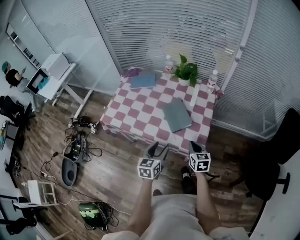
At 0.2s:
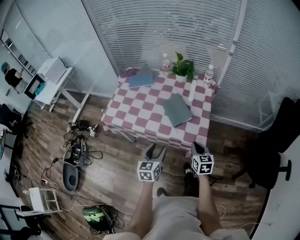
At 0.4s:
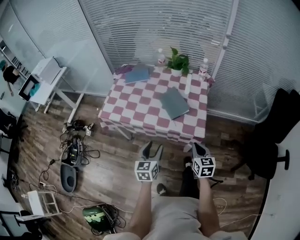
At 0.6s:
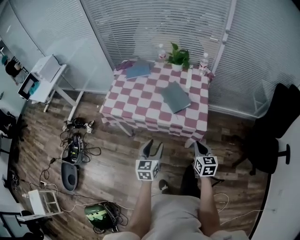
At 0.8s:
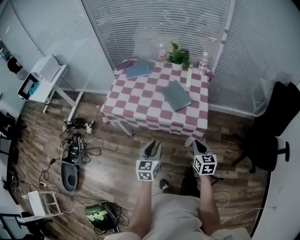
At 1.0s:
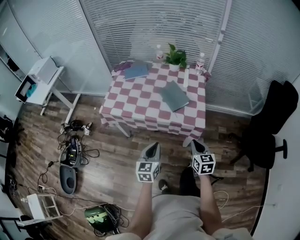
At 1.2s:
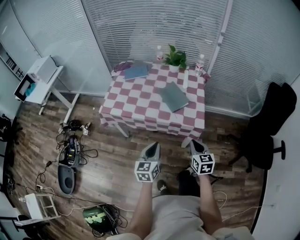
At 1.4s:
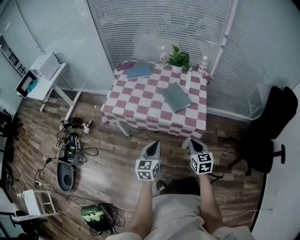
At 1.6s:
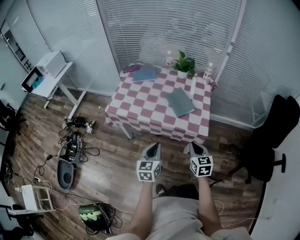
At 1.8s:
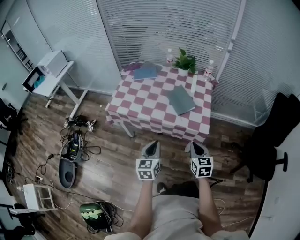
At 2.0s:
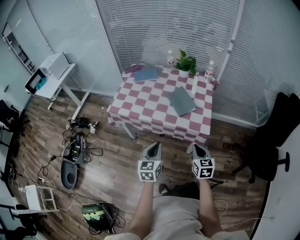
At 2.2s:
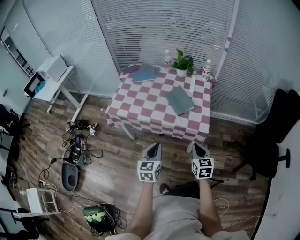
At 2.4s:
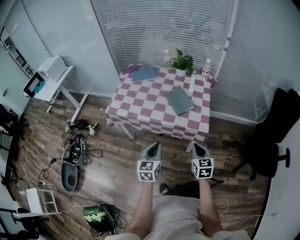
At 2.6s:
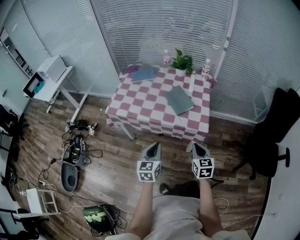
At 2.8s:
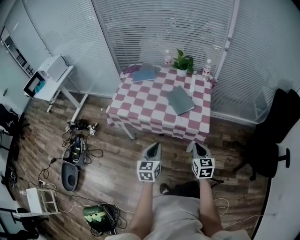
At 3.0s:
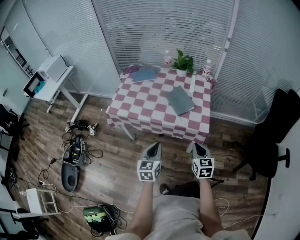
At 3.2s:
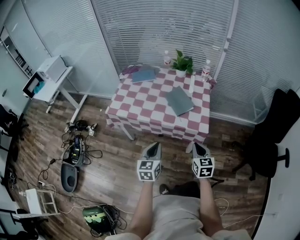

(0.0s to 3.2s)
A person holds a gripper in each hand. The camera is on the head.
0.0s - 1.6s: The left gripper shifts roughly 15 cm backward and to the left, and closes its fingers. The right gripper goes approximately 15 cm backward.
1.6s - 3.2s: The grippers stay close to where they were, moving slightly.

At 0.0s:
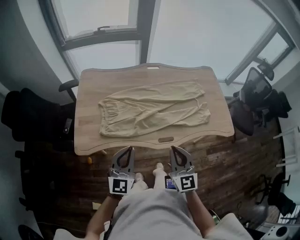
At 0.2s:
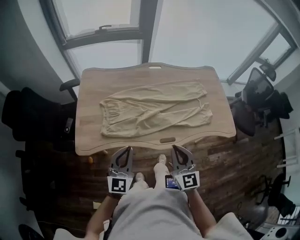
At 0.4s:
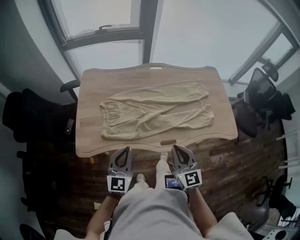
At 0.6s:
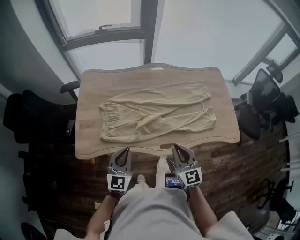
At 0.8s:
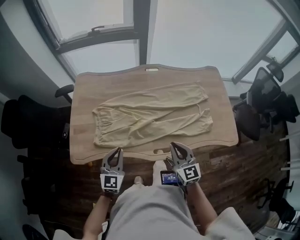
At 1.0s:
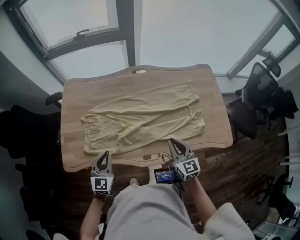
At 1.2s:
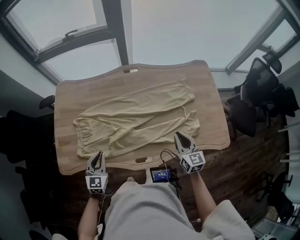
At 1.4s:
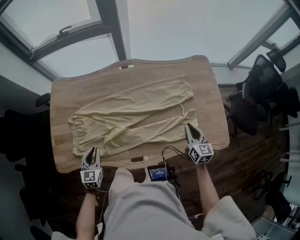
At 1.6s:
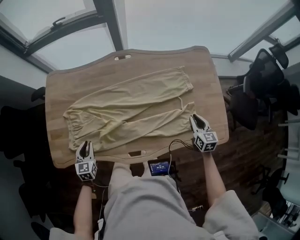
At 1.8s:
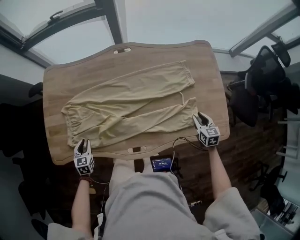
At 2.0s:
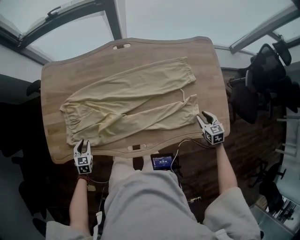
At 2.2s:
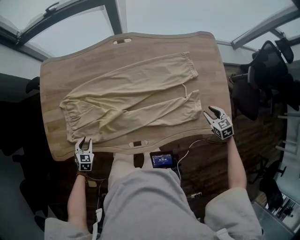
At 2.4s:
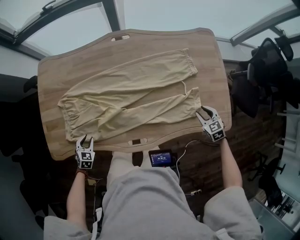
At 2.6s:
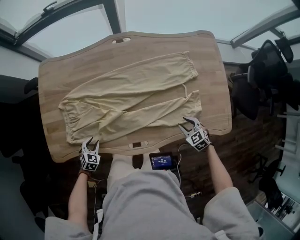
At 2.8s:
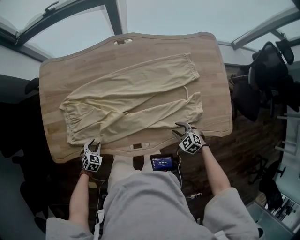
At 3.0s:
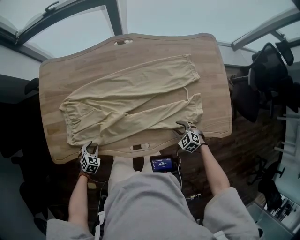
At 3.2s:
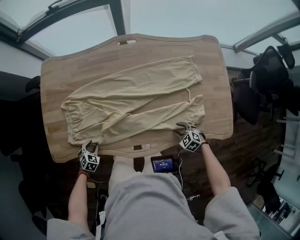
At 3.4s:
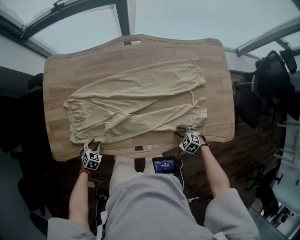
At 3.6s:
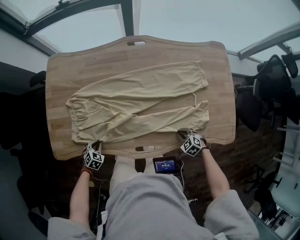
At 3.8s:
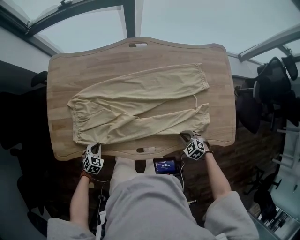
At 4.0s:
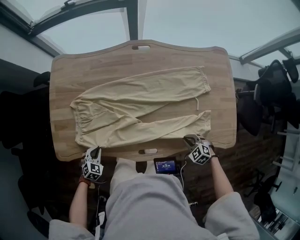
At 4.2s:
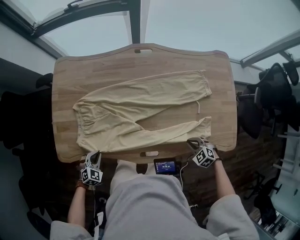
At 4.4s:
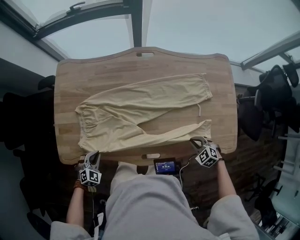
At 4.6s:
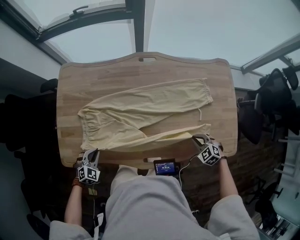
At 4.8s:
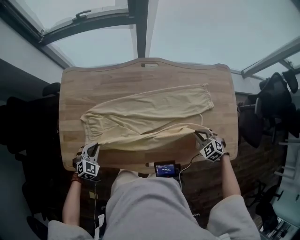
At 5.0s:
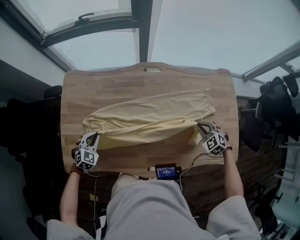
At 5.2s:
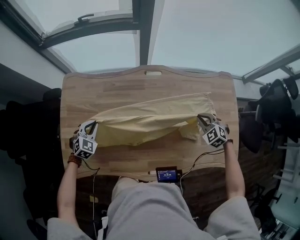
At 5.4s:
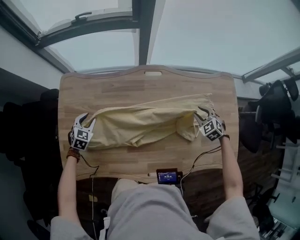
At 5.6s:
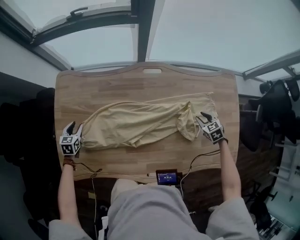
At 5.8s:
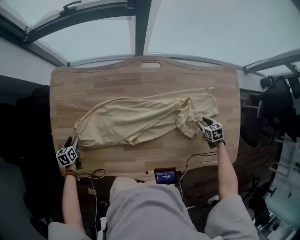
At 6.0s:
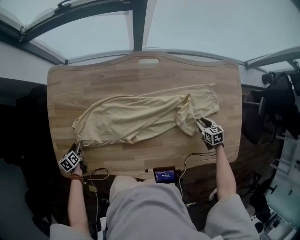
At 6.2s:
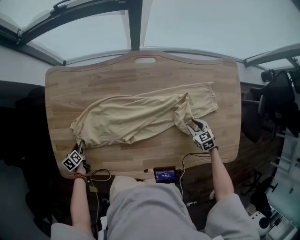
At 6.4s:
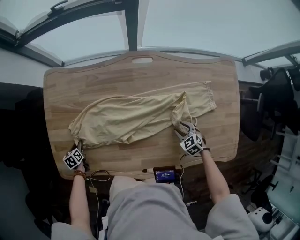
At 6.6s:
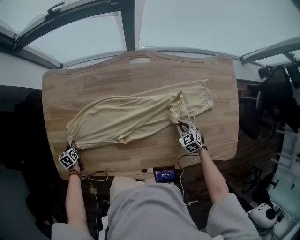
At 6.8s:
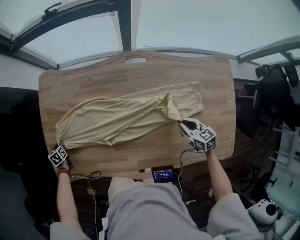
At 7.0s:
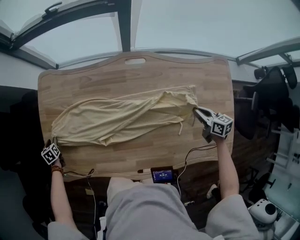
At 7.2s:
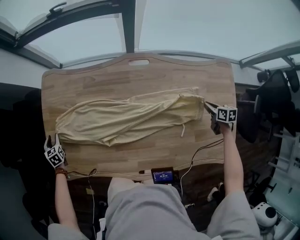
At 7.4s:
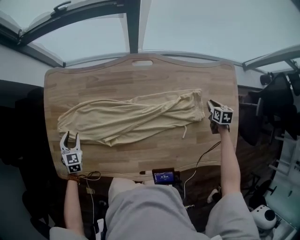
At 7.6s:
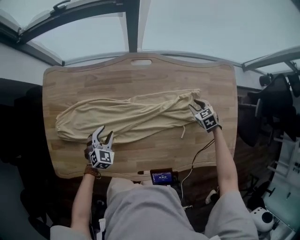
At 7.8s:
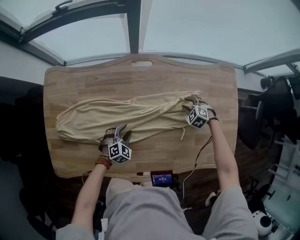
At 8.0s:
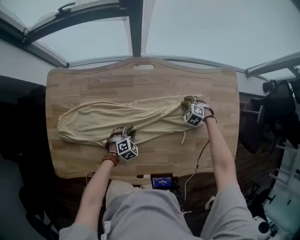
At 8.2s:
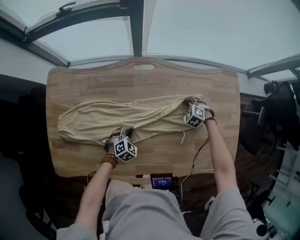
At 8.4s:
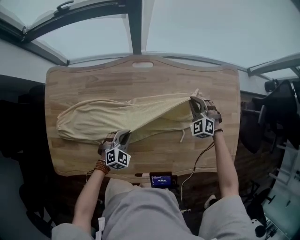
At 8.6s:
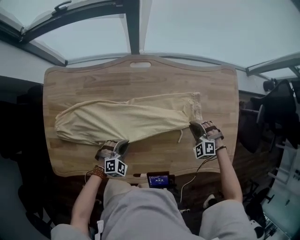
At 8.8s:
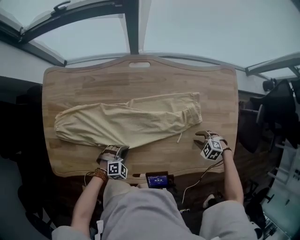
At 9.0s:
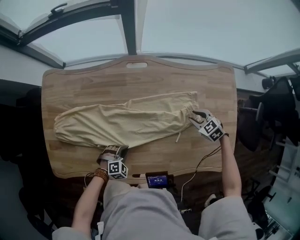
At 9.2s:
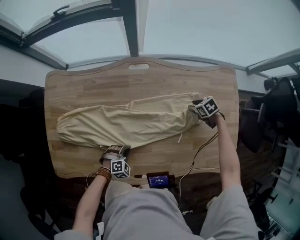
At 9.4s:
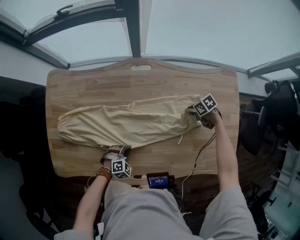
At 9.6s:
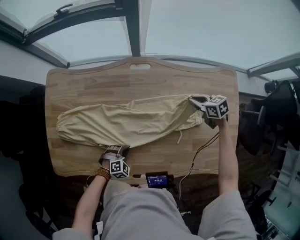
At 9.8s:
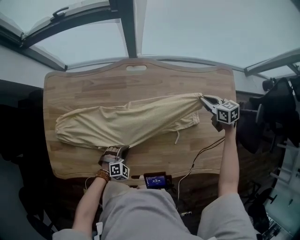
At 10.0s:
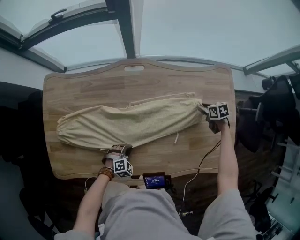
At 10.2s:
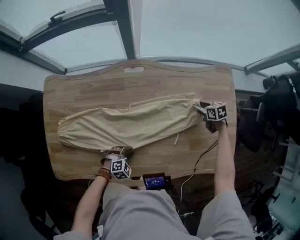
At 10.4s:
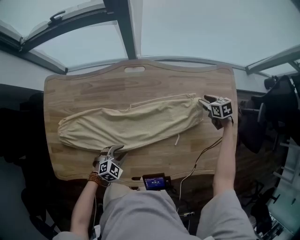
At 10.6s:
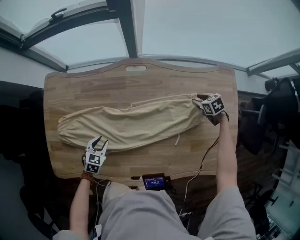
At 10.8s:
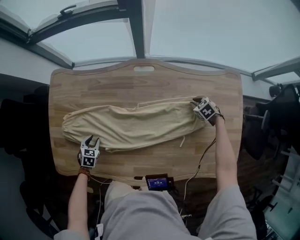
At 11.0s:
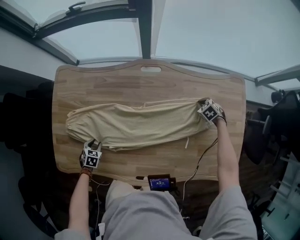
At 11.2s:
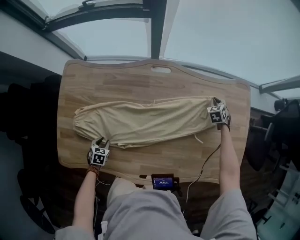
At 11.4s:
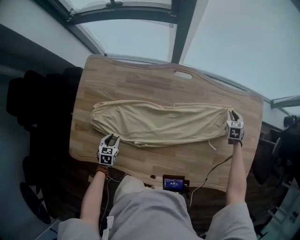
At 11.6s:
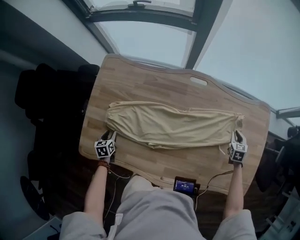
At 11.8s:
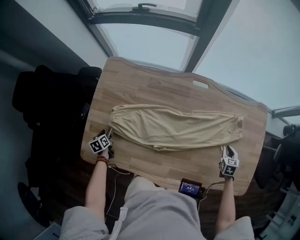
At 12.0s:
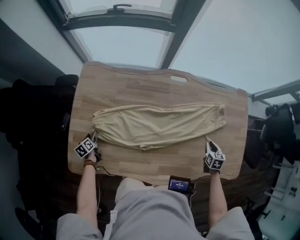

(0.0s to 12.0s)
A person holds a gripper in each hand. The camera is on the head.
0.0s - 1.6s: The left gripper travels downward and forward by approximately 30 cm, and points its fingers roughly 40 degrees further downward; the right gripper is displaced to the right, forward and downward by some 50 cm, and changes its angle by roughly 30 degrees.
1.6s - 3.0s: The right gripper goes approximately 20 cm downward, to the left and backward, tilts its fingers approximately 30 degrees downward, and opens up. The left gripper goes about 15 cm downward and backward, and turns by some 40 degrees.
3.0s - 4.4s: The grippers both shift upward by roughly 10 cm. The left gripper closes; the right gripper closes up.
4.4s - 6.0s: The right gripper heads forward and to the right, covering roughly 20 cm, rolls clockwise, seen from behind, by approximately 50 degrees, and opens its fingers, while the left gripper travels forward, to the left and downward by about 25 cm, rotates around the line of its fingers by some 80 degrees, counterclockwise from behind, and opens its fingers.
6.0s - 7.6s: The left gripper changes place by roughly 30 cm, rotates around the line of its fingers by approximately 70 degrees, clockwise from behind, and closes and opens again. The right gripper travels upward and back again, about 10 cm each way, changes its angle by roughly 20 degrees, and closes, then reopens.
7.6s - 9.0s: The right gripper goes up and down, approximately 10 cm each way, reversing 2 times, and closes and opens again. The left gripper moves up and down over approximately 10 cm, changing direction 2 times, changes its angle by some 30 degrees, and closes its fingers.
9.0s - 10.4s: The right gripper moves up and down over approximately 15 cm, changing direction 3 times, changes its angle by roughly 30 degrees, and closes, then reopens; the left gripper ends up some 5 cm from where it was, and opens its fingers.
10.4s - 12.0s: The left gripper swings up and down, some 10 cm each way, with 2 reversals, rotates around the line of its fingers by approximately 90 degrees, counterclockwise from behind, and opens its fingers, while the right gripper reaches roughly 5 cm downward, then returns, rotates approximately 30 degrees, and closes.

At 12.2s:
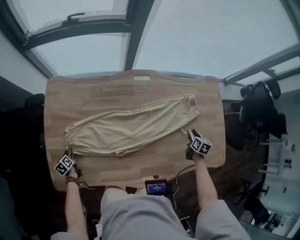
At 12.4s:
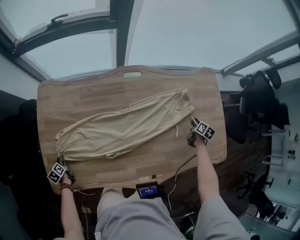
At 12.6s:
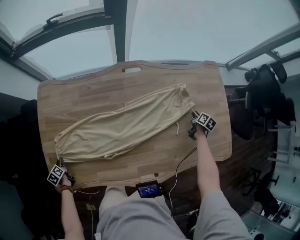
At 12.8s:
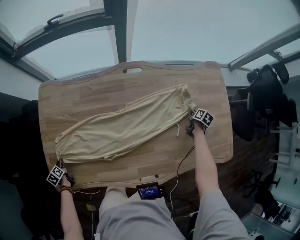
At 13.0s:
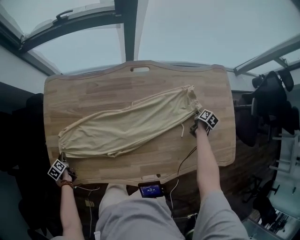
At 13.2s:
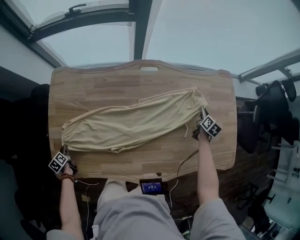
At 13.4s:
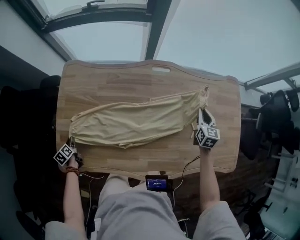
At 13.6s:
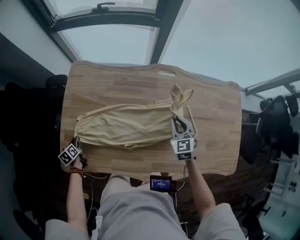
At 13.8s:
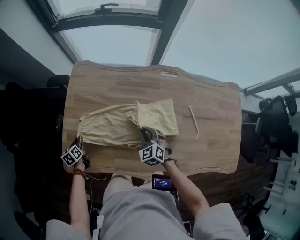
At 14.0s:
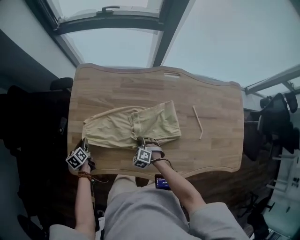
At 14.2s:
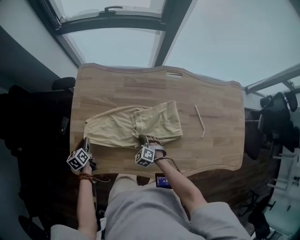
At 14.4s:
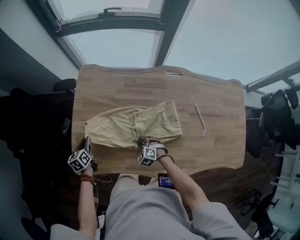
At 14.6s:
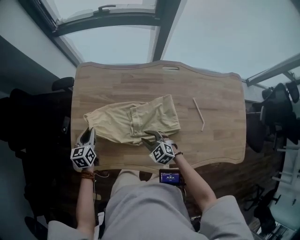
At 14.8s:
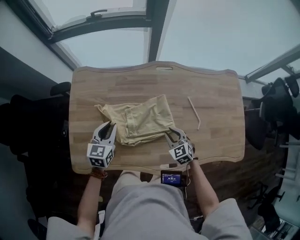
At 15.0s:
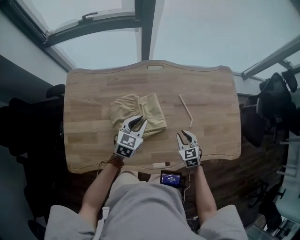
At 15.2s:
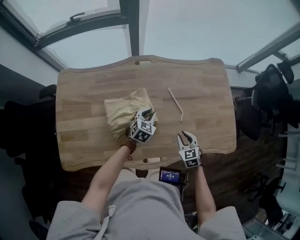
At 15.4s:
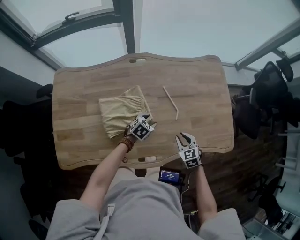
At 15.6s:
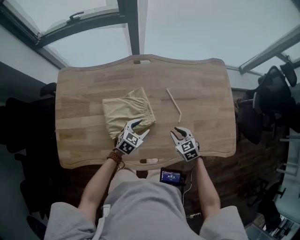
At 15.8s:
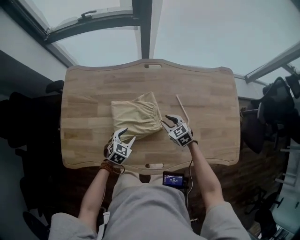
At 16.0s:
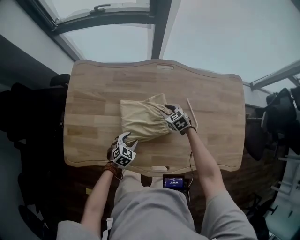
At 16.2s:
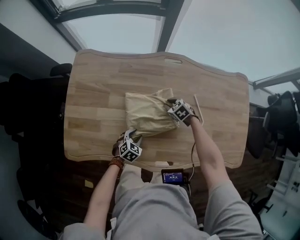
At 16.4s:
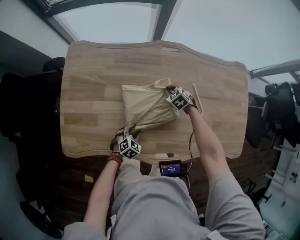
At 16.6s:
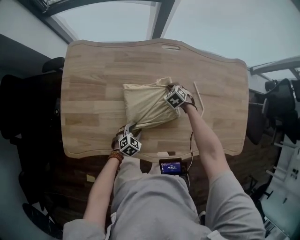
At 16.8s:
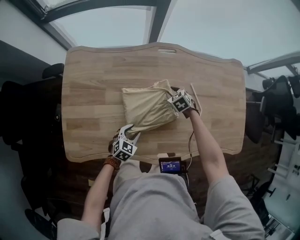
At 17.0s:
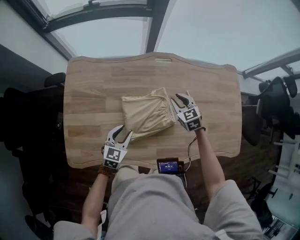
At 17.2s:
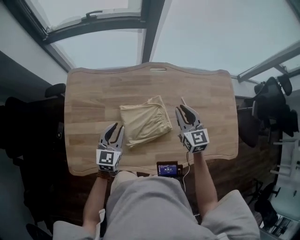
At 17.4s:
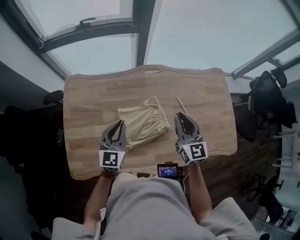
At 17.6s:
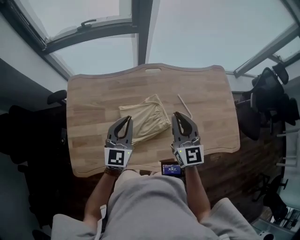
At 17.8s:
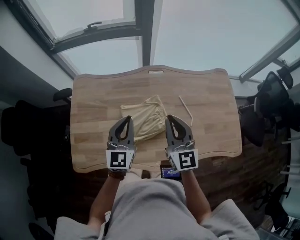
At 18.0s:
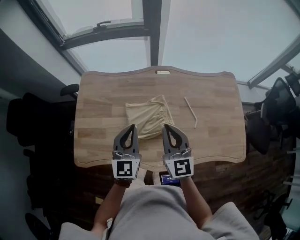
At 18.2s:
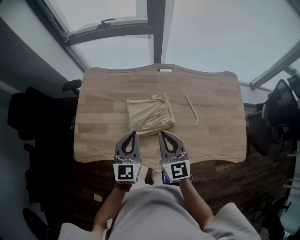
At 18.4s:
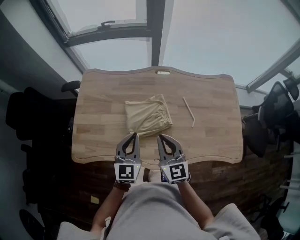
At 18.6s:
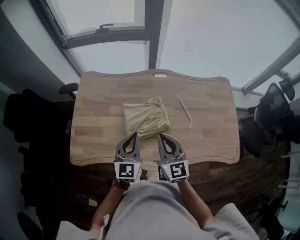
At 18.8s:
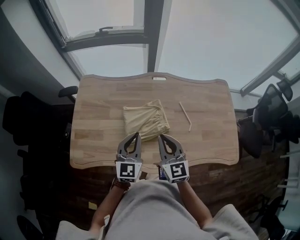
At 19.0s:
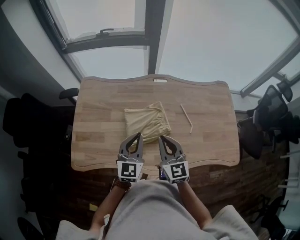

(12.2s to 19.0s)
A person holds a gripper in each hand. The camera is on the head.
12.2s - 13.6s: The right gripper heads to the left and upward, covering roughly 30 cm, rotates around the line of its fingers by about 50 degrees, counterclockwise from behind, and closes its fingers. The left gripper shifts by roughly 5 cm.
13.6s - 15.0s: The right gripper travels downward and back again, about 20 cm each way; the left gripper shifts by roughly 50 cm, and rotates roughly 70 degrees.
15.0s - 16.2s: The right gripper shifts by roughly 25 cm, and changes its angle by roughly 40 degrees. The left gripper moves up and down over about 20 cm, changing direction 2 times, turns by roughly 30 degrees, and opens.
16.2s - 17.6s: The grippers both shift upward by roughly 35 cm. The left gripper tips its fingers upward by about 50 degrees, and closes up. The right gripper tilts its fingers roughly 60 degrees upward.
17.6s - 19.0s: Both grippers move backward, some 10 cm.

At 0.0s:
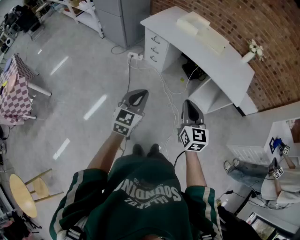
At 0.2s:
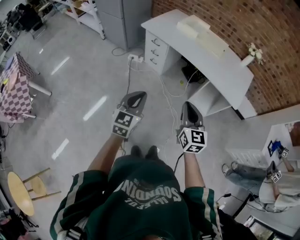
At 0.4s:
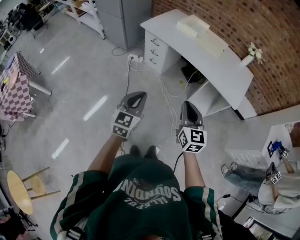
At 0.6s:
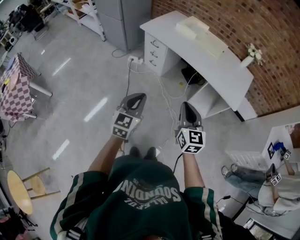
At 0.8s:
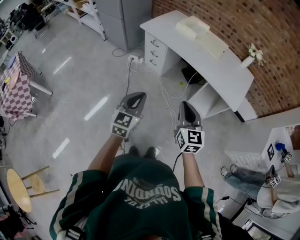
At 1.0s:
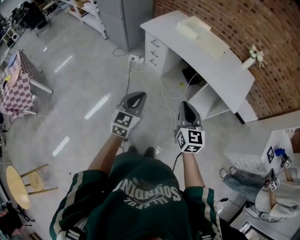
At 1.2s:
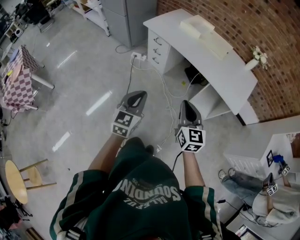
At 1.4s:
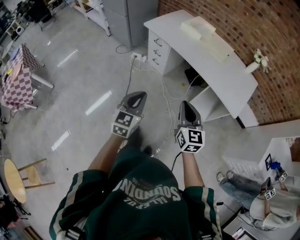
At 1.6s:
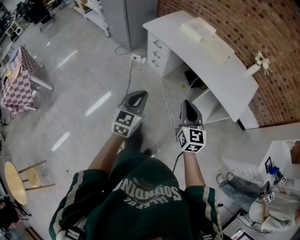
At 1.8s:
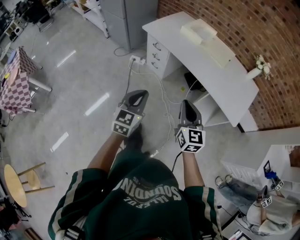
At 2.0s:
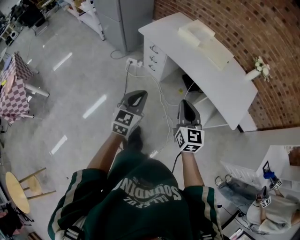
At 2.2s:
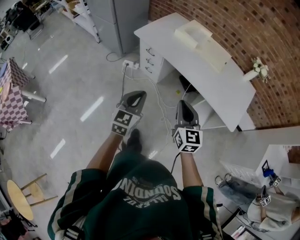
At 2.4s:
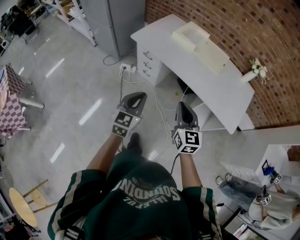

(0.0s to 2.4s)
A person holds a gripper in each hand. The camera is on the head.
0.0s - 1.2s: The grippers both shift to the right by about 5 cm.
1.2s - 2.4s: Both grippers travel together forward, some 20 cm.
